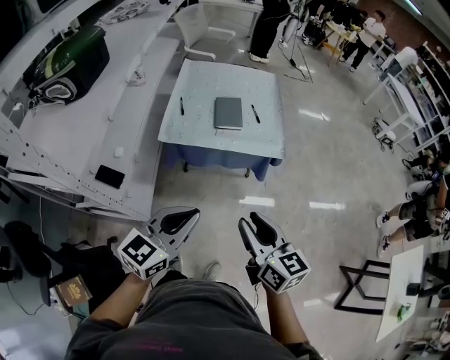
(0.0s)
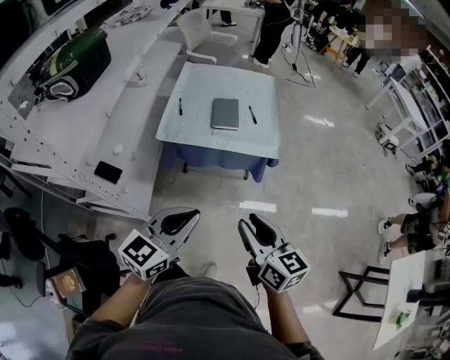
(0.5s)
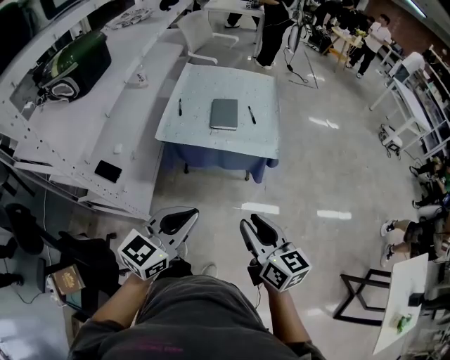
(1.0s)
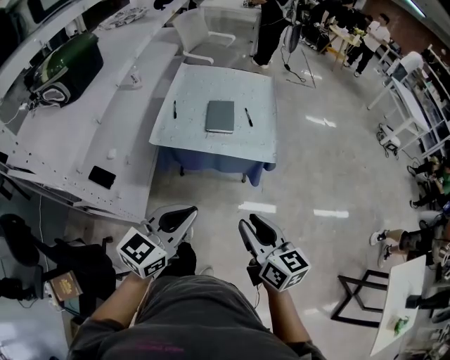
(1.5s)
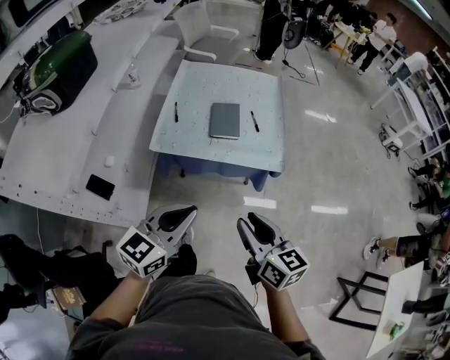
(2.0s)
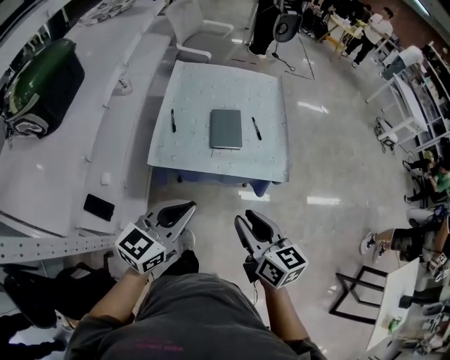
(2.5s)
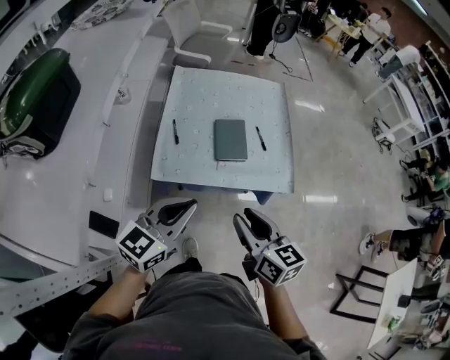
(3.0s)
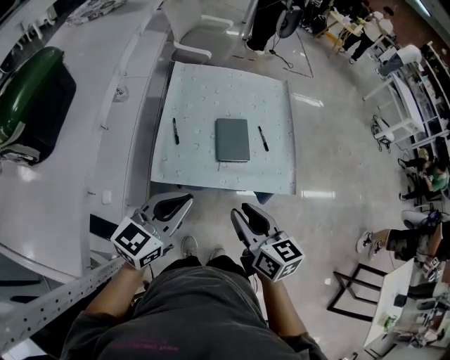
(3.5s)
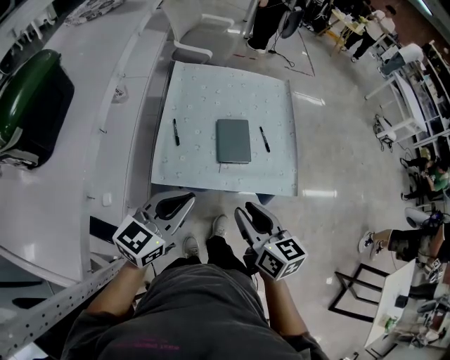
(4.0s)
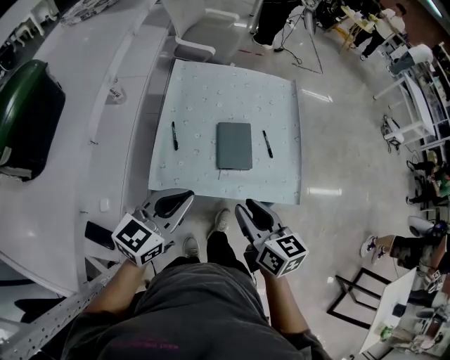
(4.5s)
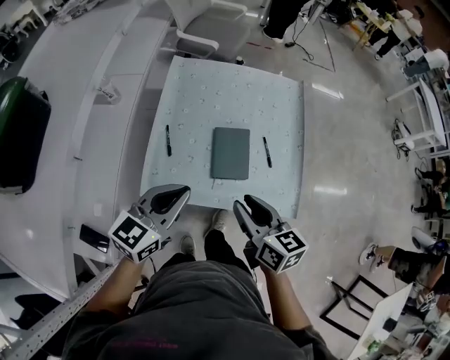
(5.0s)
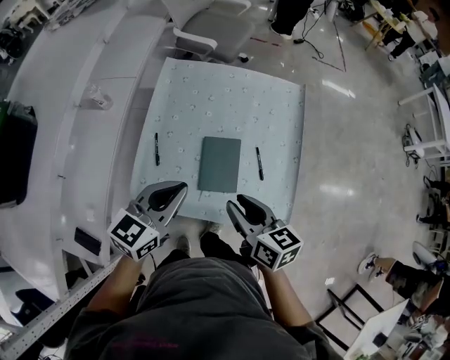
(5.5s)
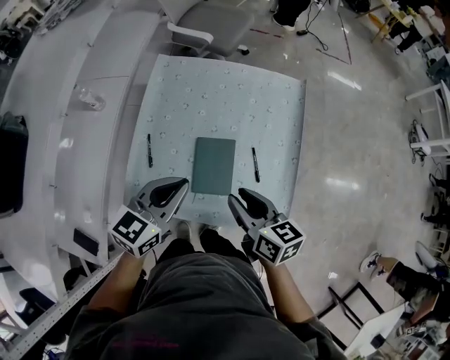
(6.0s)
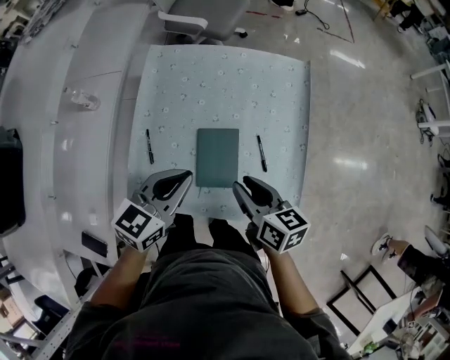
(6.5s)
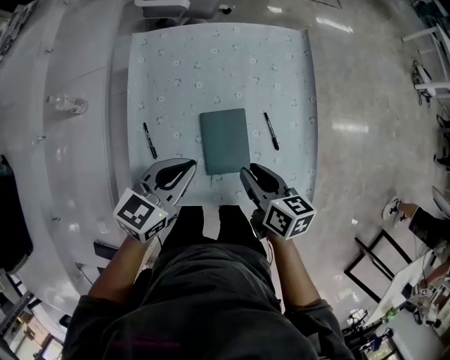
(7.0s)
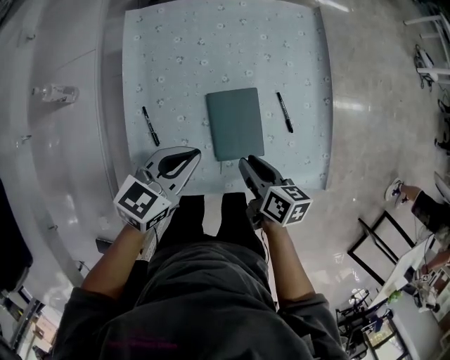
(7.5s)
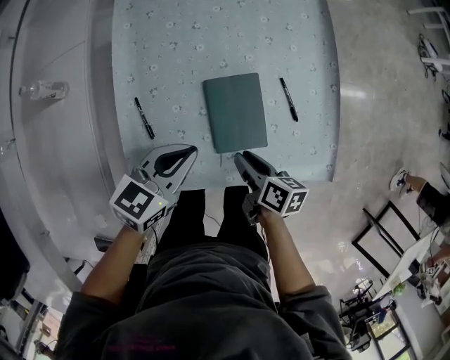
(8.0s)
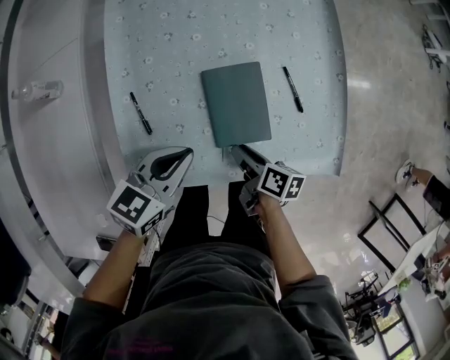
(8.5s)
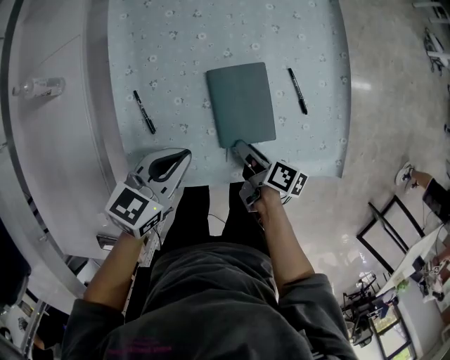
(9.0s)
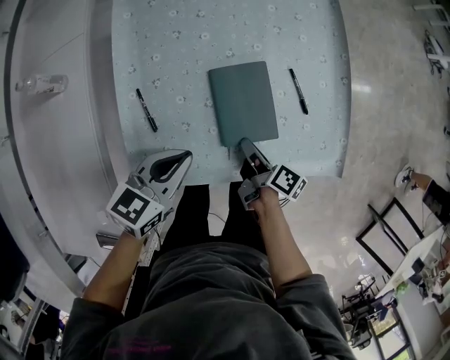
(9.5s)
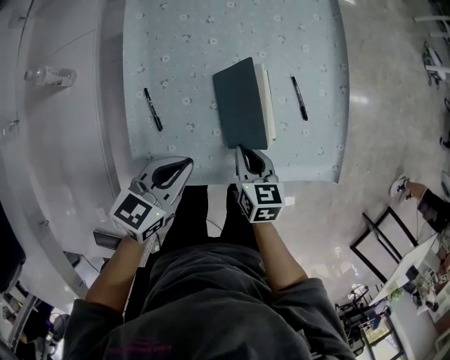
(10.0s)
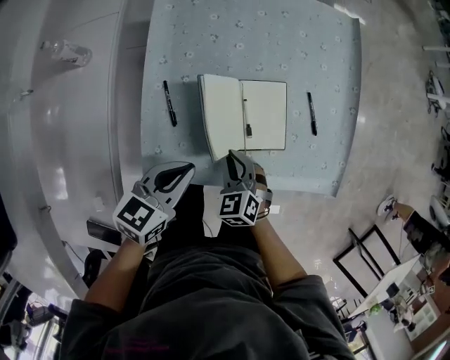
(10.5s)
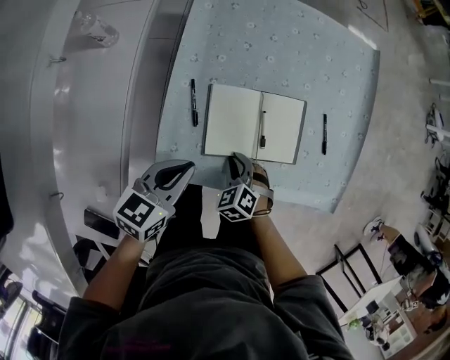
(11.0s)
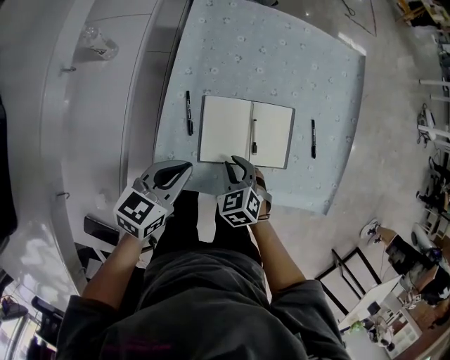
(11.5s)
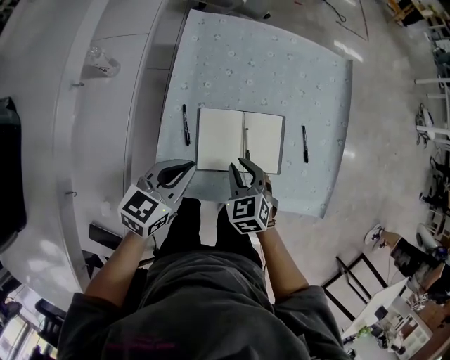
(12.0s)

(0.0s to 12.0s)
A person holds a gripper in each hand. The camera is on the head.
0.0s - 2.0s: The two grippers go about 10 cm forward.
2.0s - 4.0s: The grippers both shift forward and to the left by some 25 cm.
4.0s - 6.0s: Both grippers travel together forward and to the right, about 30 cm.
6.0s - 8.0s: The grippers both shift downward by roughly 20 cm. The right gripper rotates approximately 40 degrees; the left gripper turns by roughly 20 degrees.
8.0s - 10.0s: The left gripper shifts some 5 cm backward; the right gripper rotates some 30 degrees.
10.0s - 12.0s: Both grippers move to the left, about 10 cm. The right gripper rotates around the line of its fingers by some 40 degrees, counterclockwise from behind.

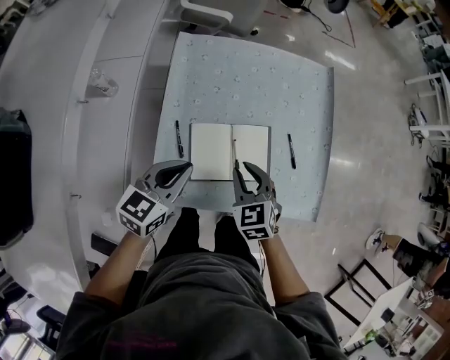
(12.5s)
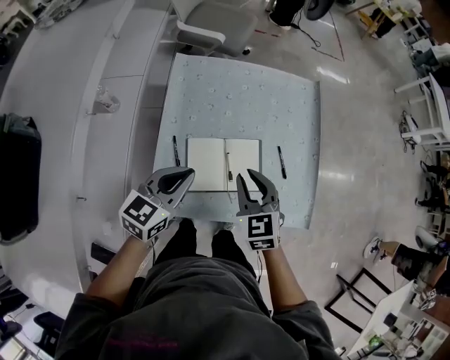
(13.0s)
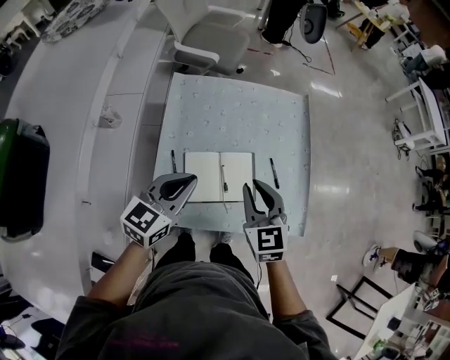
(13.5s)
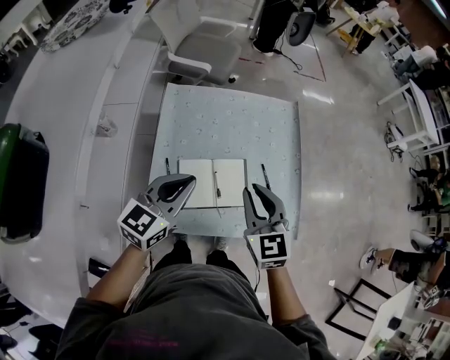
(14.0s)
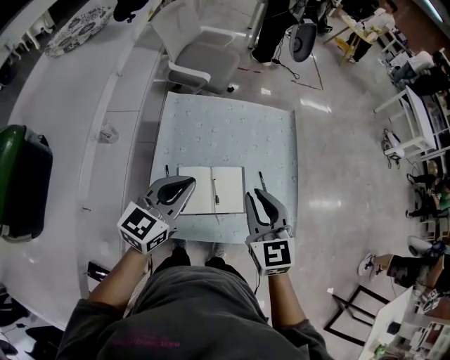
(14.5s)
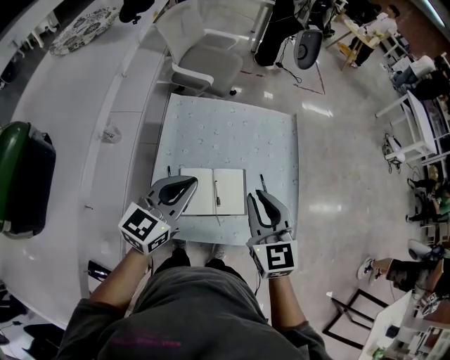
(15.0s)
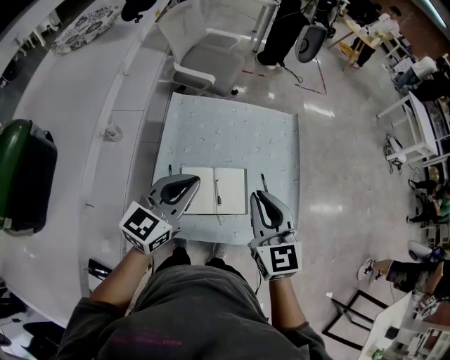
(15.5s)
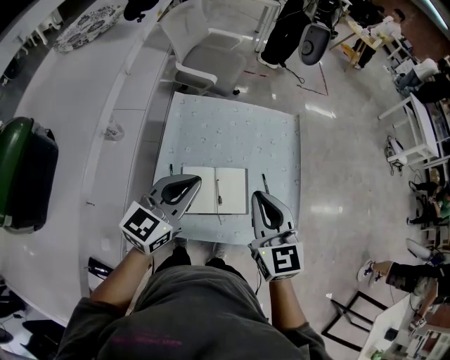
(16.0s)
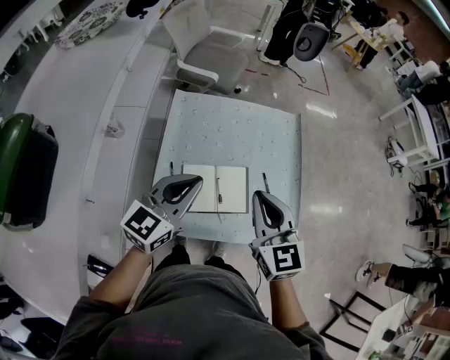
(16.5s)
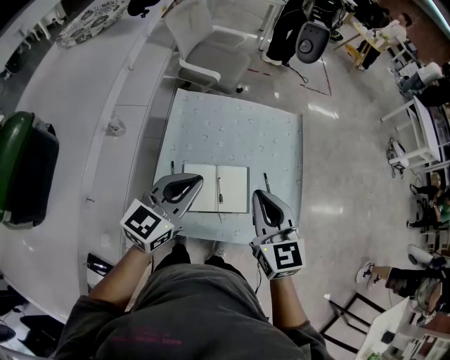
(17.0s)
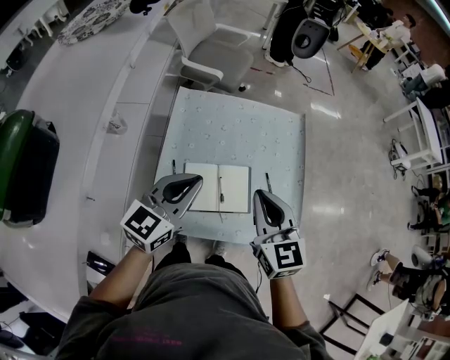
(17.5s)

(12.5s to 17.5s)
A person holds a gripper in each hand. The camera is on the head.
12.5s - 15.0s: The two grippers go some 20 cm upward. The right gripper rotates about 30 degrees.
15.0s - 17.5s: The grippers make only small movements.

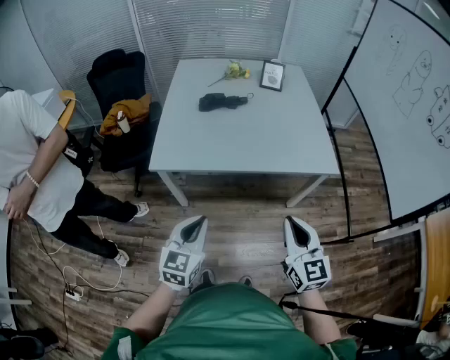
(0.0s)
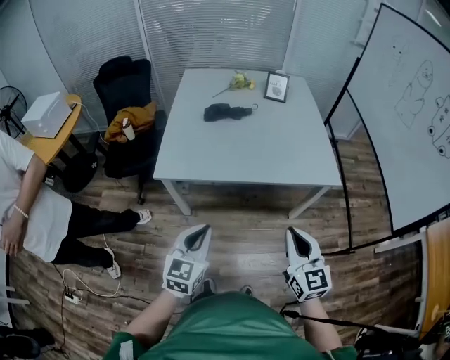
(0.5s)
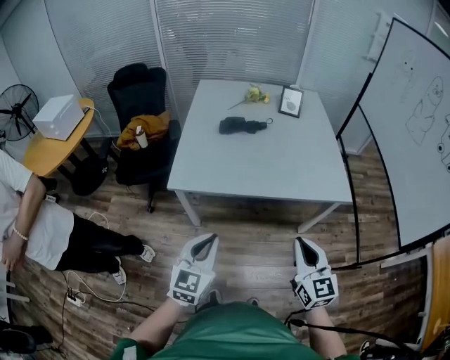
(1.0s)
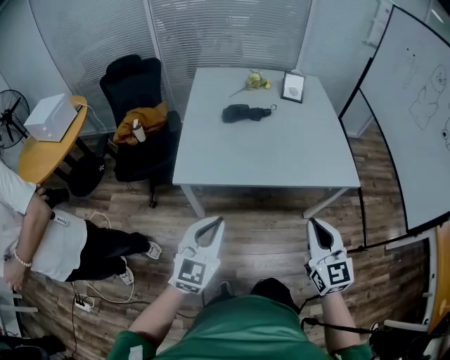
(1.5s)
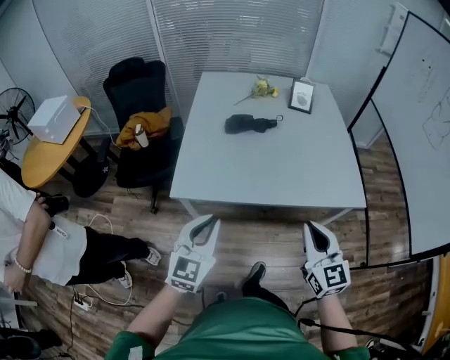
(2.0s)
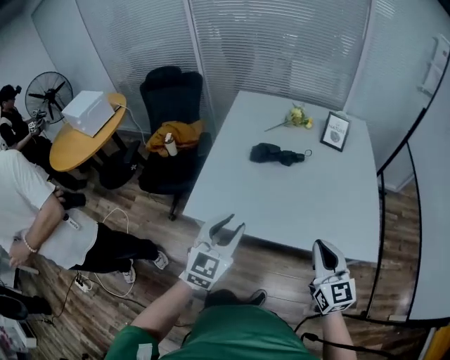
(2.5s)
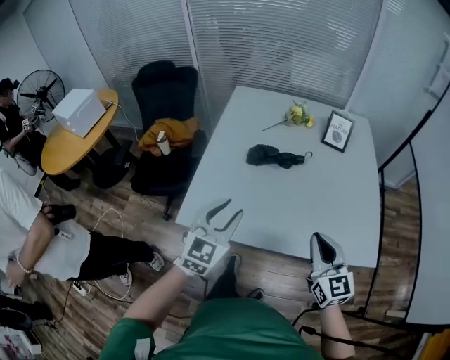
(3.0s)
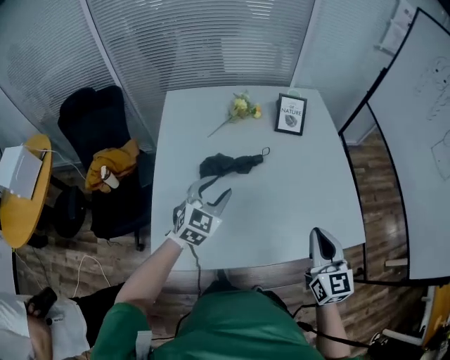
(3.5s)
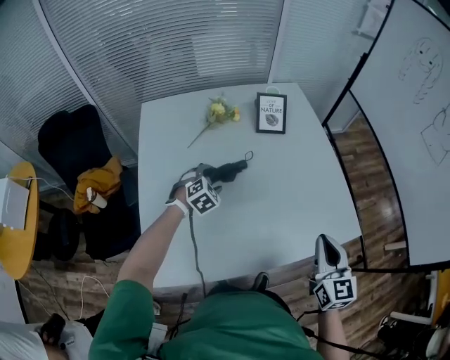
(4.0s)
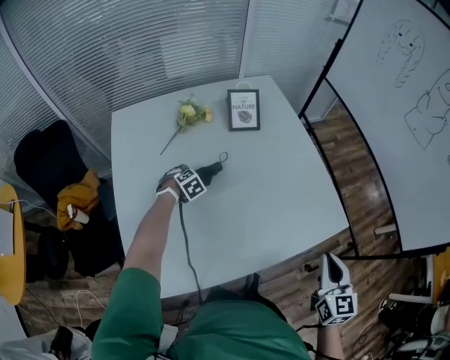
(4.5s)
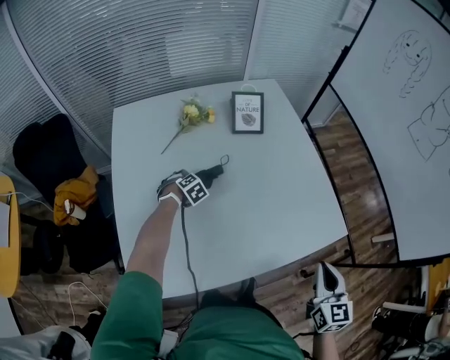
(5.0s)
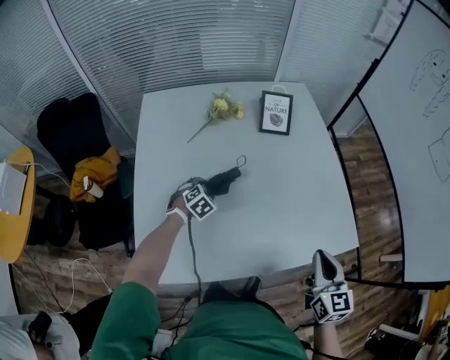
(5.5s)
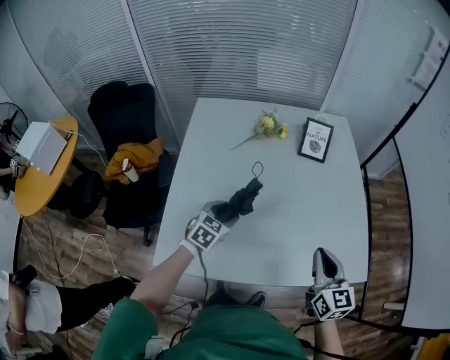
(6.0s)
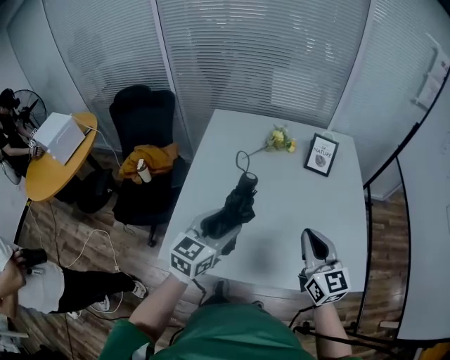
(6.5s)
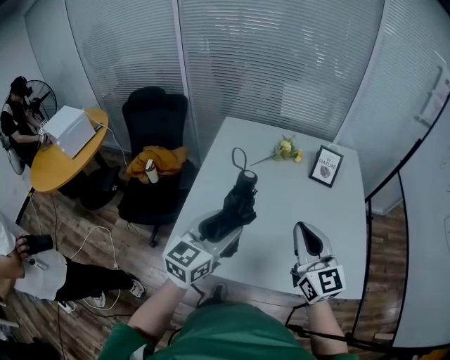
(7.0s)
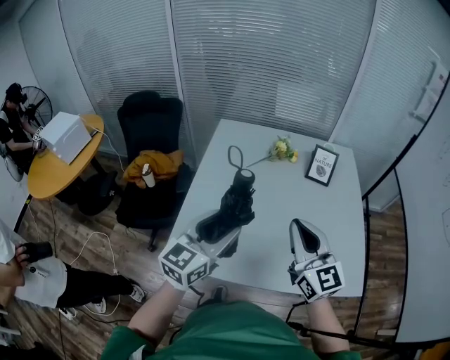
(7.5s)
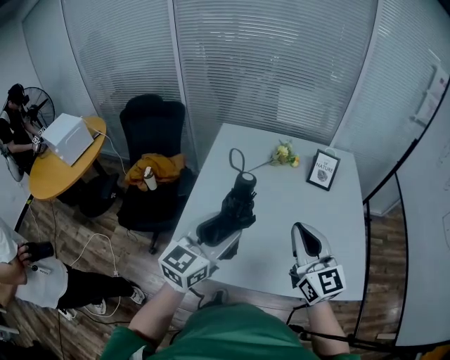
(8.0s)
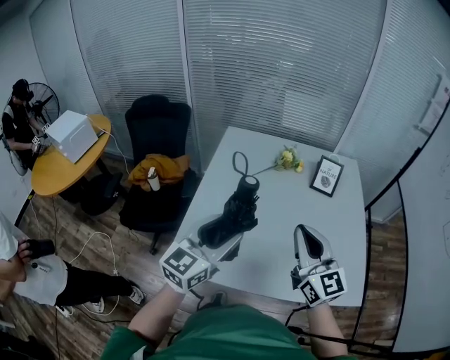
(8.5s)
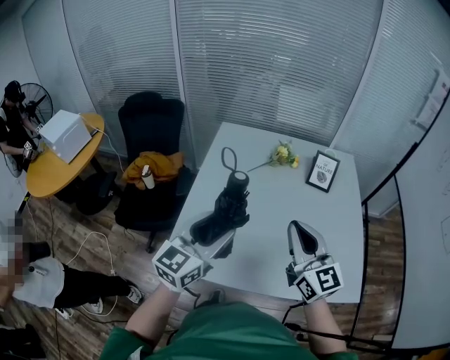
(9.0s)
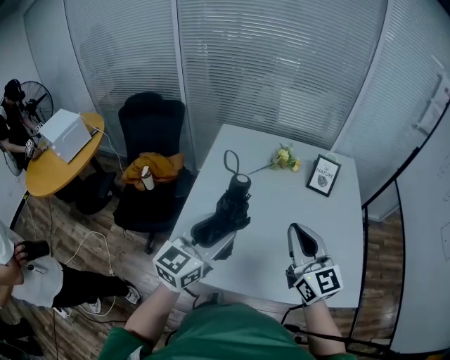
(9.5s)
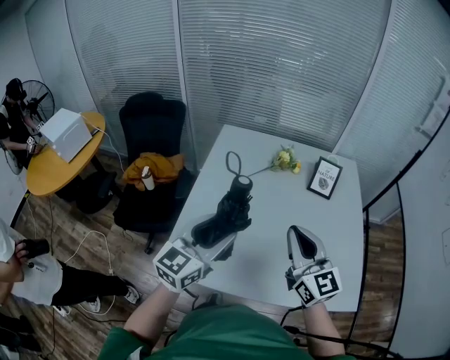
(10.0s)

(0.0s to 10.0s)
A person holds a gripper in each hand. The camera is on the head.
0.0s - 2.0s: Both grippers travel together forward and to the left, roughly 15 cm.
2.0s - 4.0s: The right gripper ends up roughly 30 cm from where it was, and swivels about 30 degrees. Meanwhile the left gripper changes place by roughly 60 cm, tilts its fingers about 40 degrees downward, and opens.
4.0s - 6.0s: The left gripper shifts some 15 cm backward, and turns by about 40 degrees, while the right gripper goes to the right and returns, roughly 10 cm each way.
6.0s - 8.0s: The left gripper shifts approximately 30 cm upward and backward, and tilts its fingers about 40 degrees upward. The right gripper moves upward and to the left, roughly 20 cm, and swivels some 30 degrees.
8.0s - 10.0s: The grippers move only a little.
